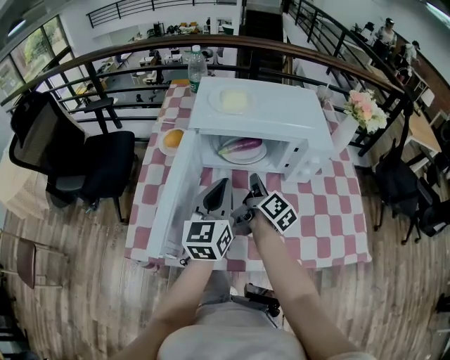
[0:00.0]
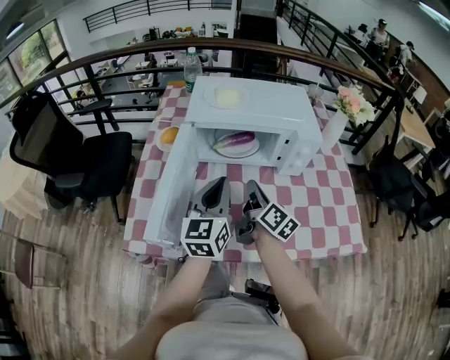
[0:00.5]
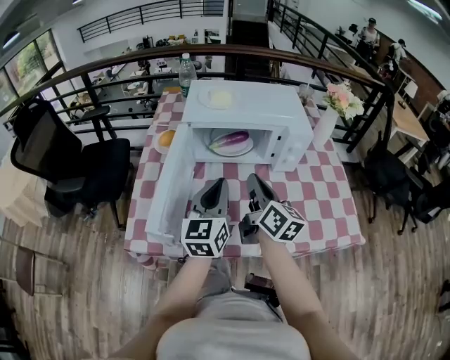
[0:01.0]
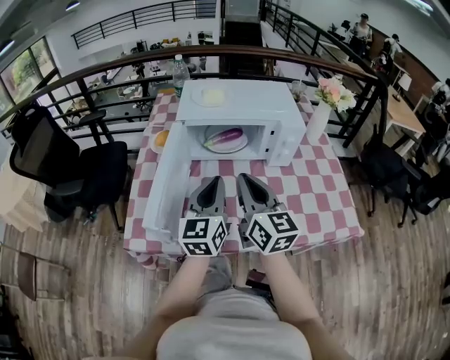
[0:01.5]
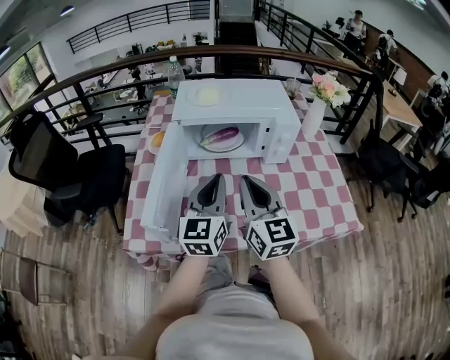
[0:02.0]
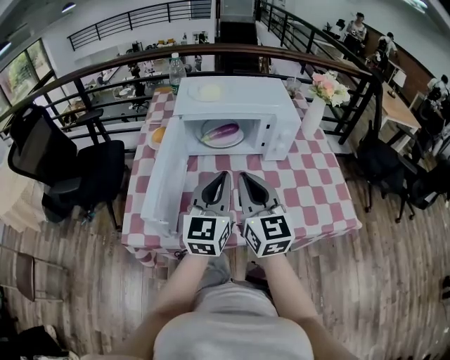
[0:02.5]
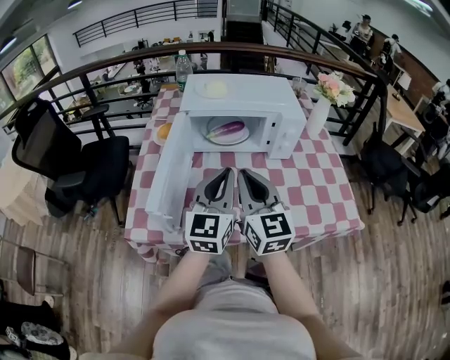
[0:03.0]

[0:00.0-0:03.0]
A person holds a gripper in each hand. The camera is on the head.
0:00.0 to 0:01.5: The left gripper shifts by roughly 10 cm.
0:01.5 to 0:03.0: The left gripper ends up some 5 cm from where it was.

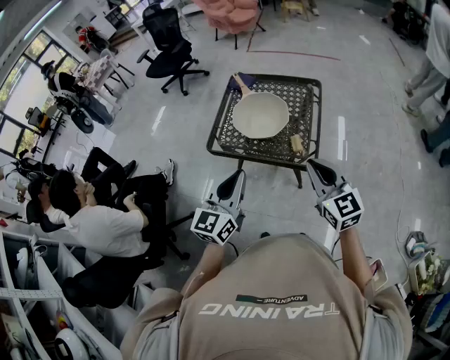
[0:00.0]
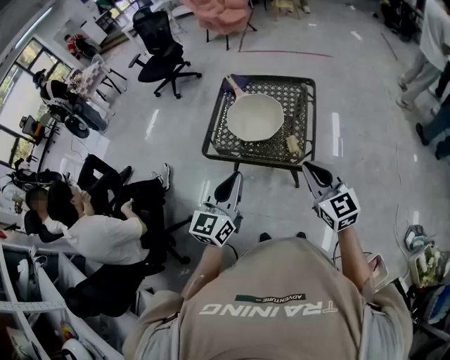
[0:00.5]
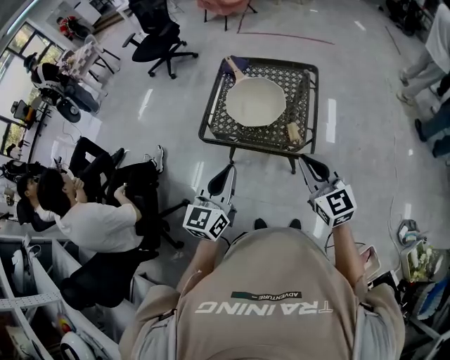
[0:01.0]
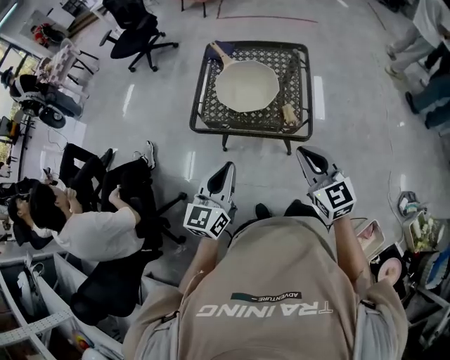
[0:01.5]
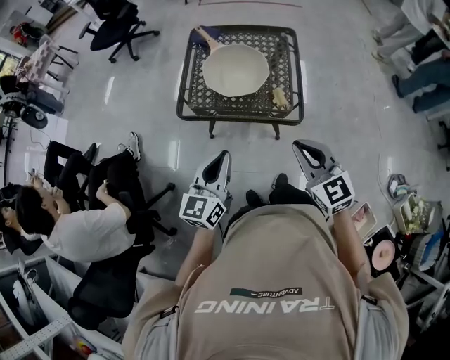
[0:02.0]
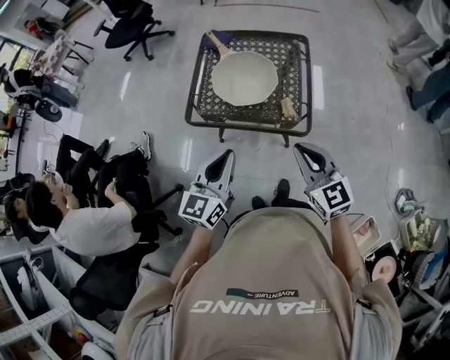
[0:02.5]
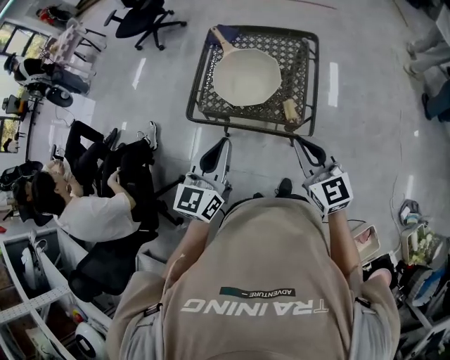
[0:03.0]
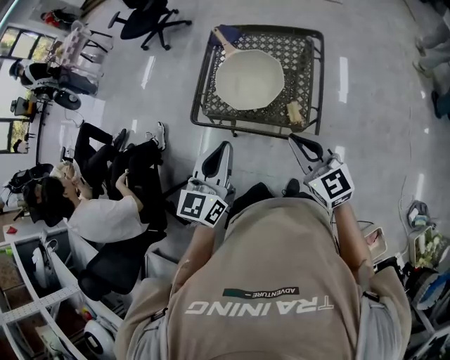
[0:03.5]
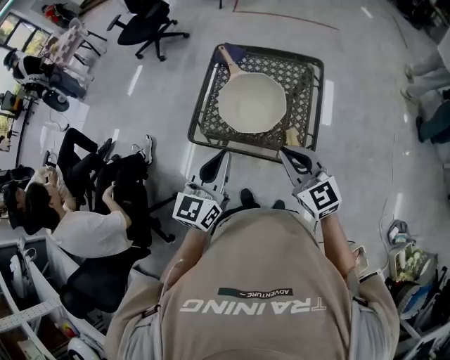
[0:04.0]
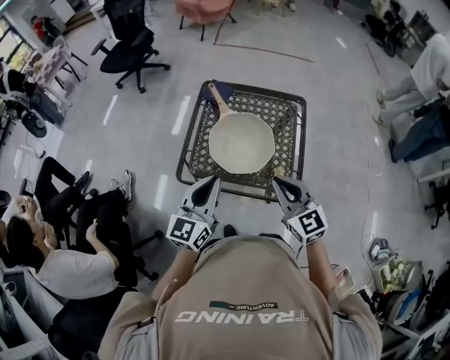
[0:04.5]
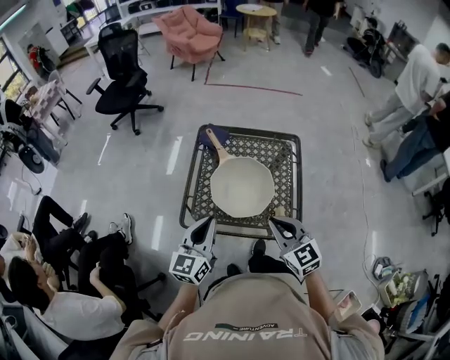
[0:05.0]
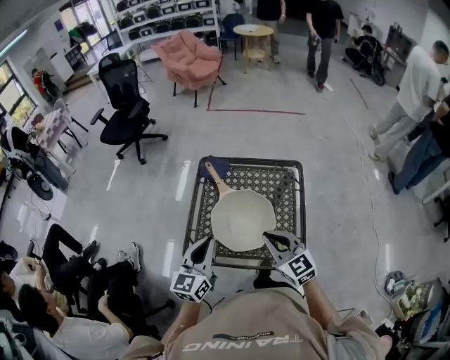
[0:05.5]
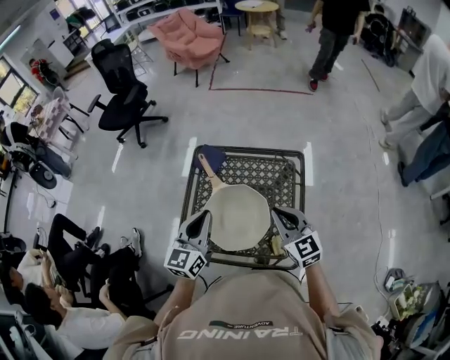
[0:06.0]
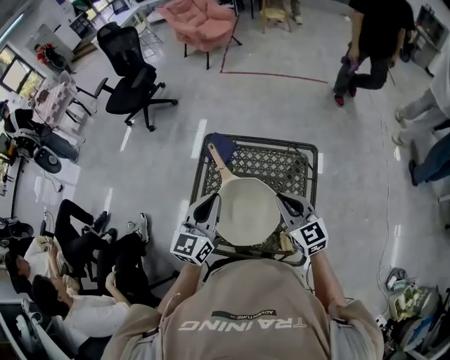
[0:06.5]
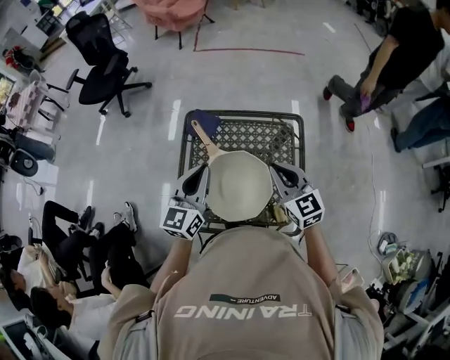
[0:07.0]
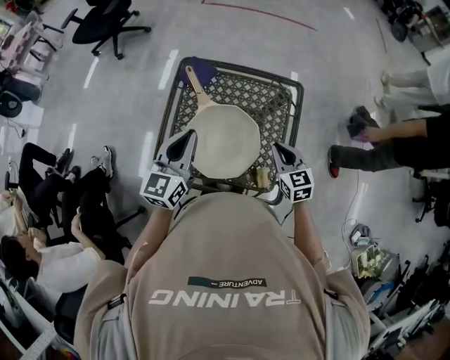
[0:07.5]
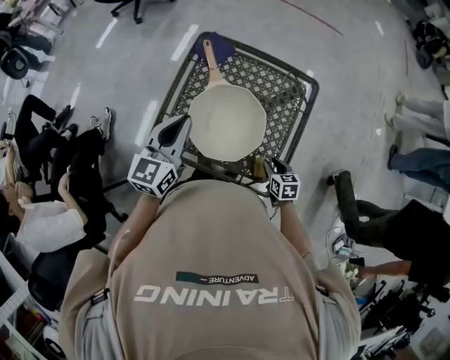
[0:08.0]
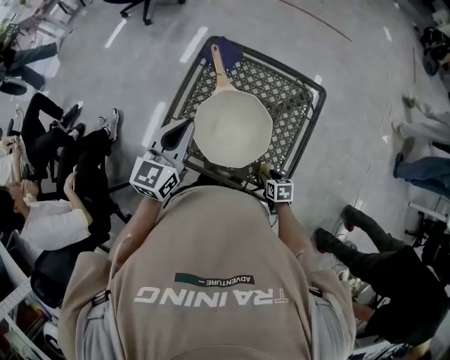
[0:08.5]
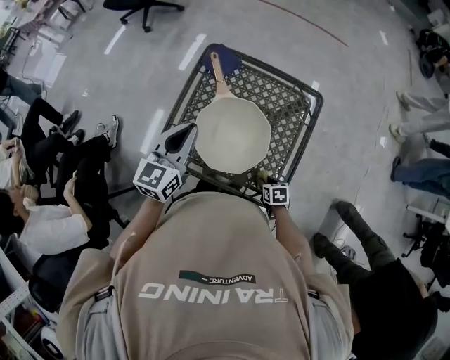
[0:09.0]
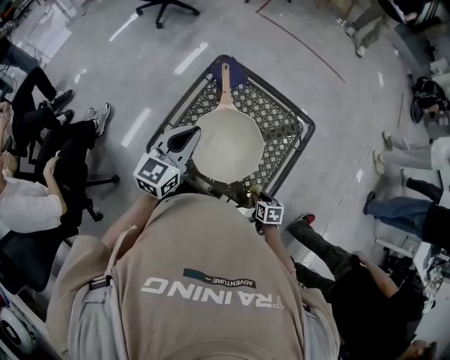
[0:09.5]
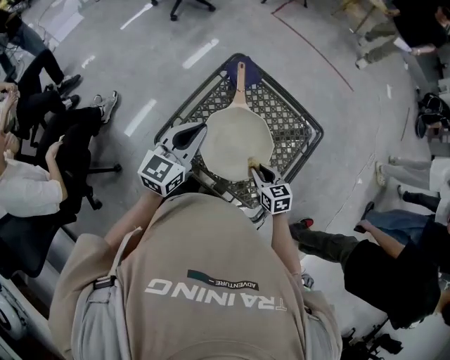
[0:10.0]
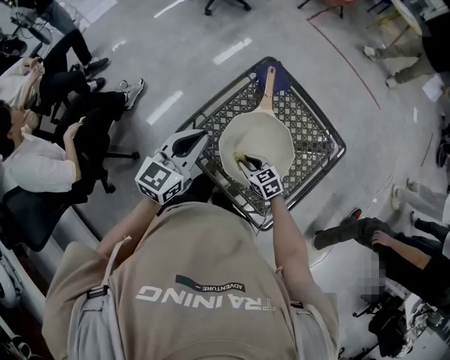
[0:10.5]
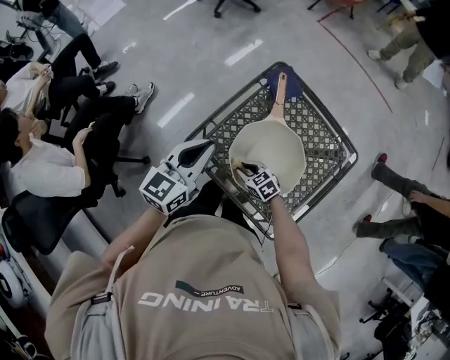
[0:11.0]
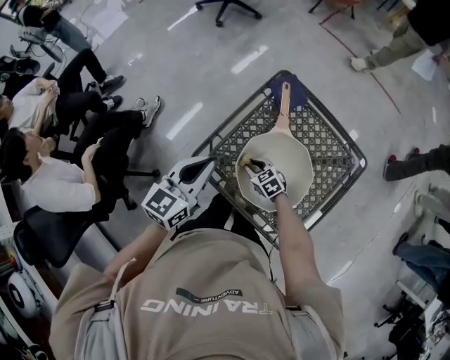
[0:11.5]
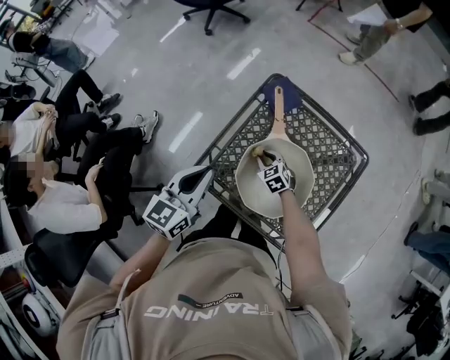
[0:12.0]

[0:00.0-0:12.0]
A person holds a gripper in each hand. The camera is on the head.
0:00.0 to 0:02.0: The left gripper moves downward and to the left, roughly 10 cm, while the right gripper shifts roughly 10 cm to the left and downward.
0:02.0 to 0:04.0: The two grippers go some 15 cm forward.
0:04.0 to 0:06.0: Both grippers move forward, roughly 25 cm.
0:06.0 to 0:08.0: The left gripper changes place by roughly 5 cm; the right gripper moves downward, about 30 cm, tilts its fingers approximately 40 degrees downward, and opens up.
0:08.0 to 0:10.0: The right gripper shifts roughly 15 cm to the left, upward and forward, and rotates approximately 30 degrees.
0:10.0 to 0:12.0: The left gripper goes some 5 cm to the left, while the right gripper is displaced forward, downward and to the left by some 25 cm, and turns by roughly 20 degrees.

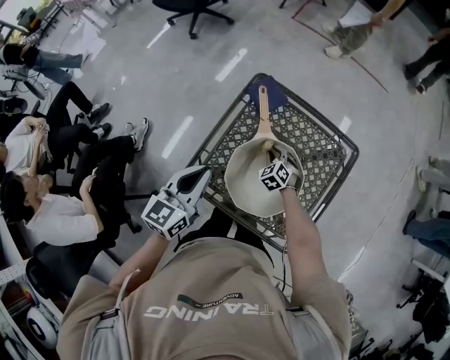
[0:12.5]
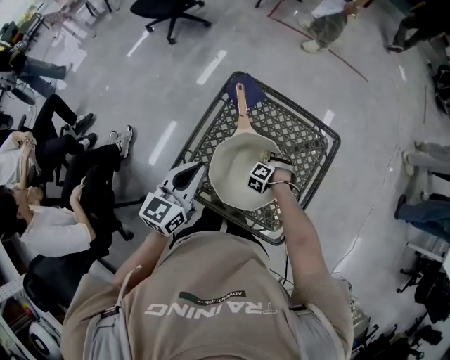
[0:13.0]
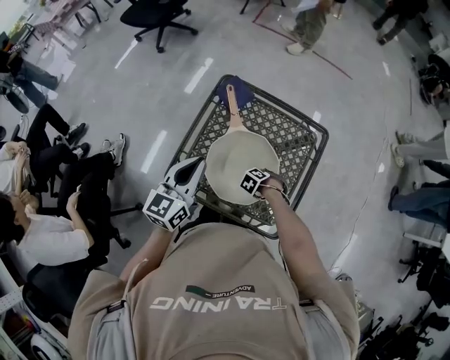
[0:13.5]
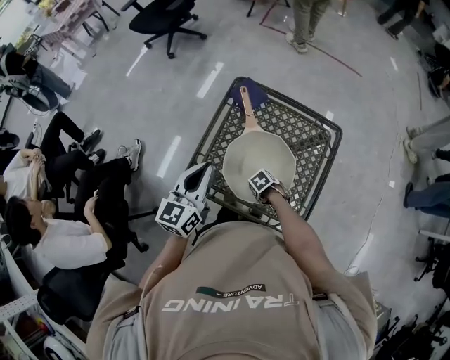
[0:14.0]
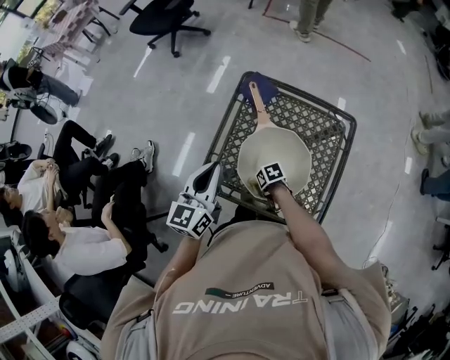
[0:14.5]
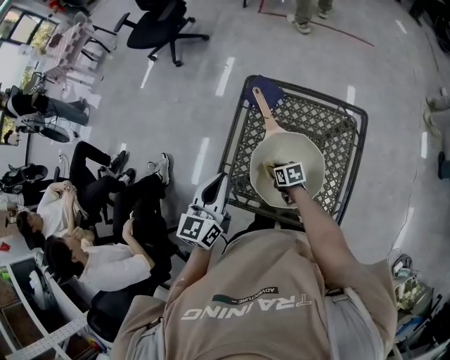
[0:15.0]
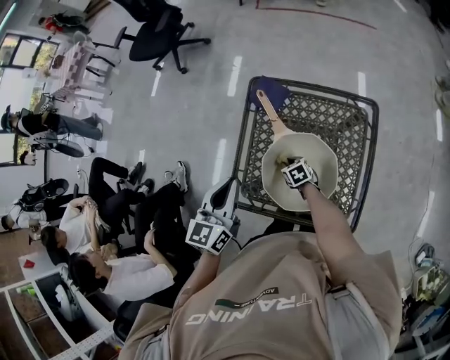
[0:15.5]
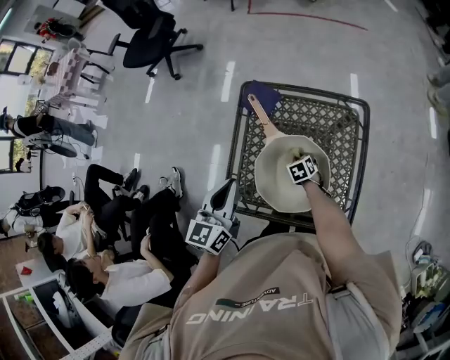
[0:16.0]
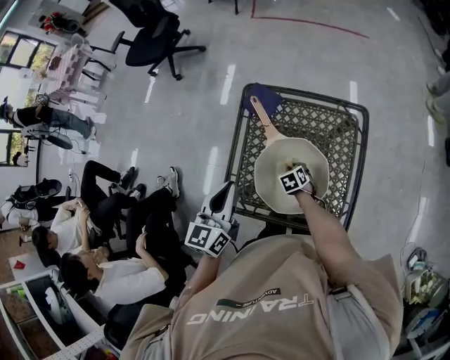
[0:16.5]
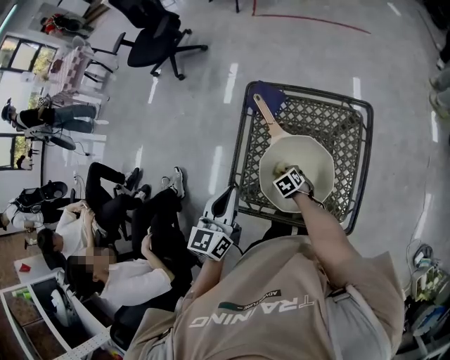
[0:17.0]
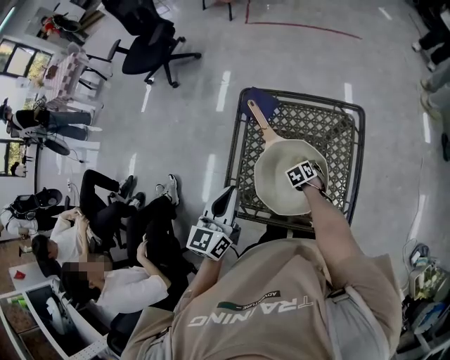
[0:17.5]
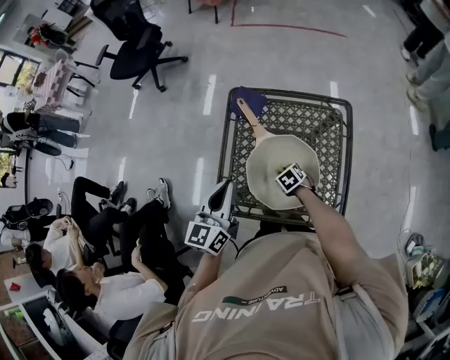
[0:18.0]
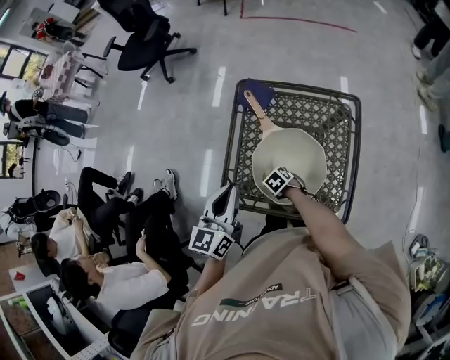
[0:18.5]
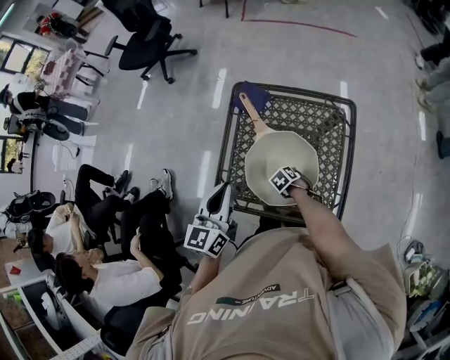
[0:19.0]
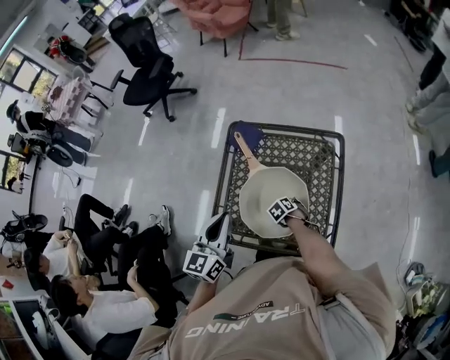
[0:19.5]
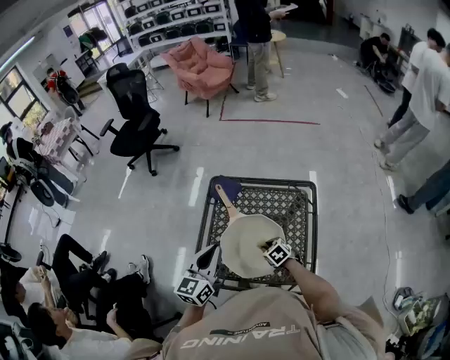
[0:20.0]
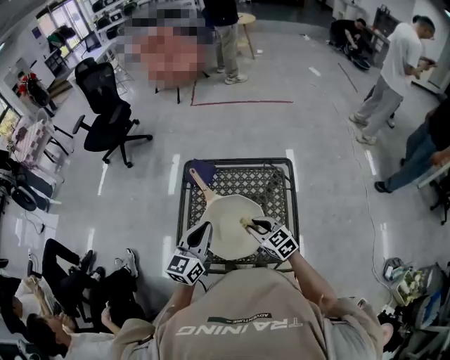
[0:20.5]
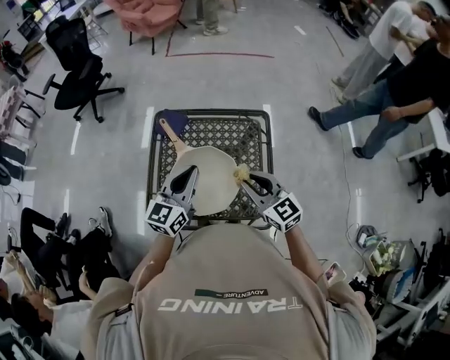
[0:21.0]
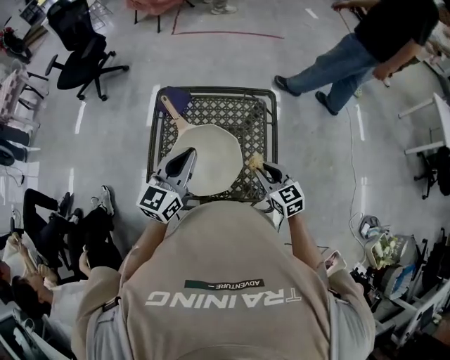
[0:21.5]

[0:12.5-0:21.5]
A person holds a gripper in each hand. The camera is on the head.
0:12.5 to 0:14.5: The right gripper ends up approximately 20 cm from where it was, and rotates approximately 70 degrees.
0:14.5 to 0:17.0: The right gripper changes its angle by some 30 degrees.
0:17.0 to 0:19.5: The left gripper changes place by roughly 5 cm. The right gripper changes place by approximately 10 cm.
0:19.5 to 0:21.5: The left gripper shifts by about 15 cm, and turns by some 20 degrees. Meanwhile the right gripper goes roughly 25 cm upward, and angles its fingers upward, by some 60 degrees.

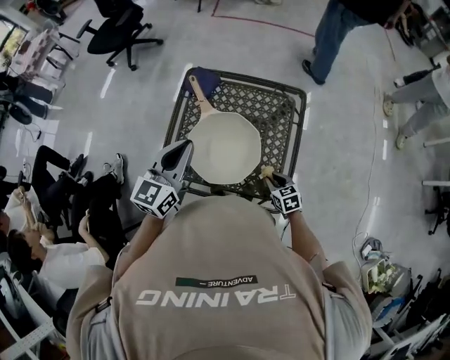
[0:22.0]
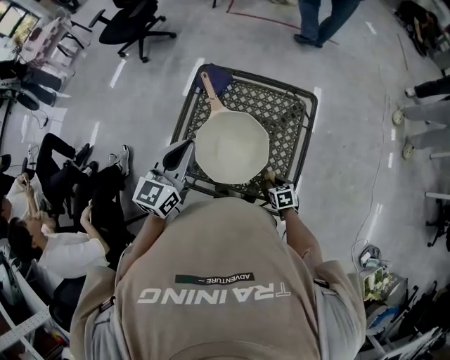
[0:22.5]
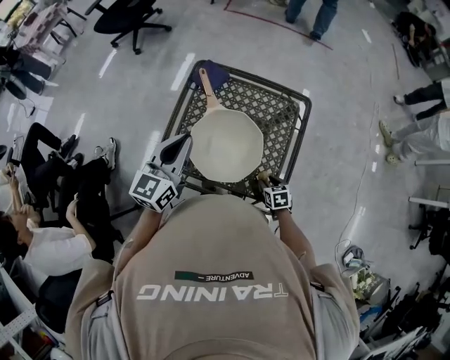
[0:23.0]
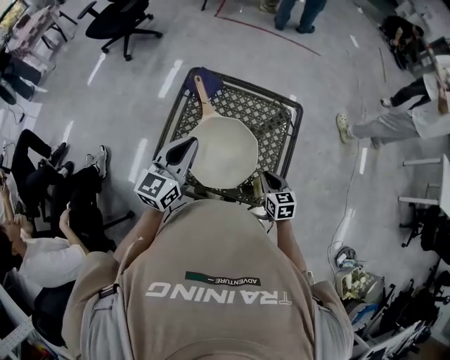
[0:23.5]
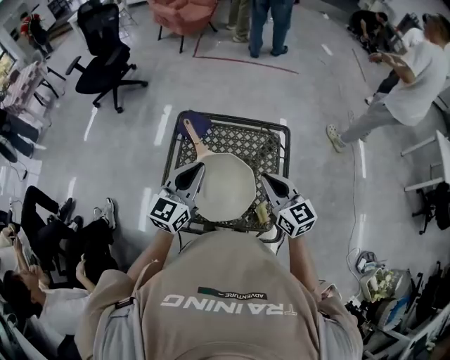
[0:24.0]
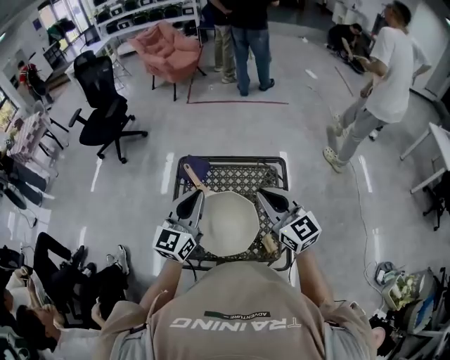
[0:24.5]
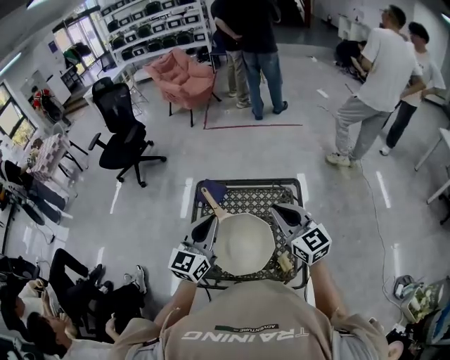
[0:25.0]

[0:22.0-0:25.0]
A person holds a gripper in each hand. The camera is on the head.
0:22.0 to 0:23.5: The right gripper travels upward by approximately 10 cm, and opens and closes again.
0:23.5 to 0:25.0: The left gripper moves upward, approximately 10 cm. The right gripper travels upward by about 30 cm, and points its fingers roughly 40 degrees further upward.
